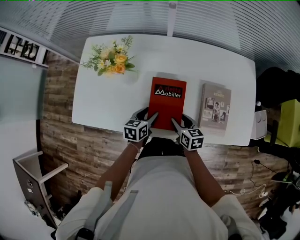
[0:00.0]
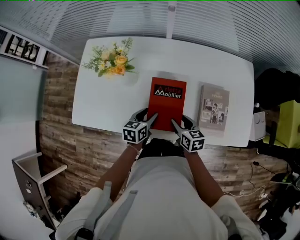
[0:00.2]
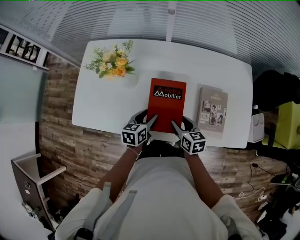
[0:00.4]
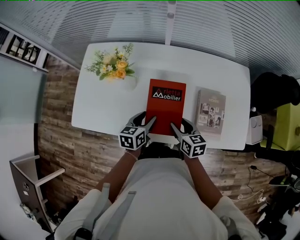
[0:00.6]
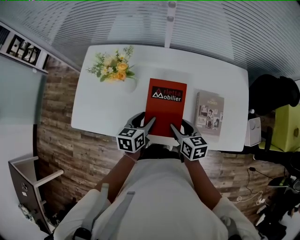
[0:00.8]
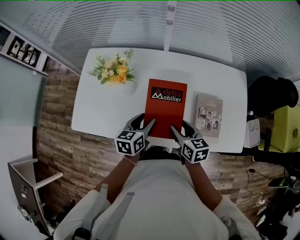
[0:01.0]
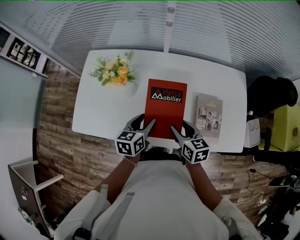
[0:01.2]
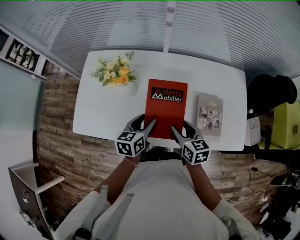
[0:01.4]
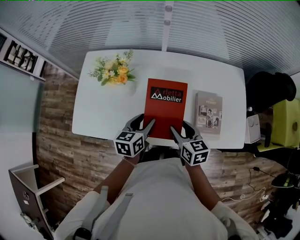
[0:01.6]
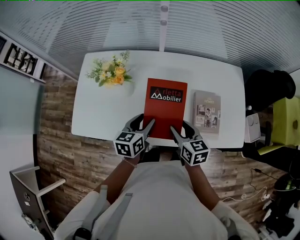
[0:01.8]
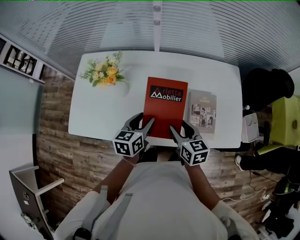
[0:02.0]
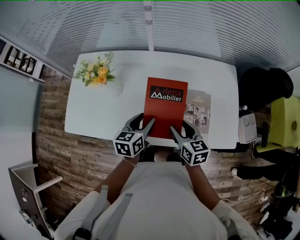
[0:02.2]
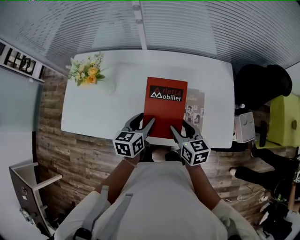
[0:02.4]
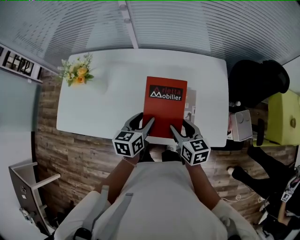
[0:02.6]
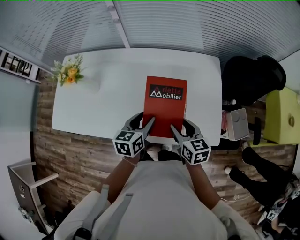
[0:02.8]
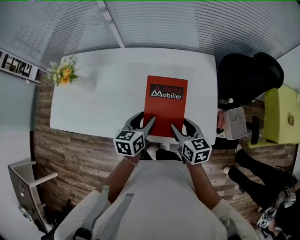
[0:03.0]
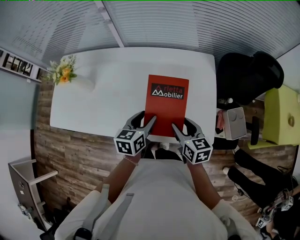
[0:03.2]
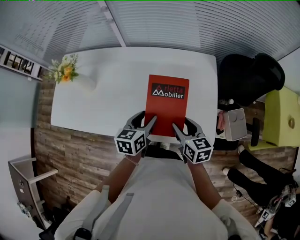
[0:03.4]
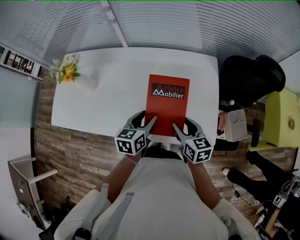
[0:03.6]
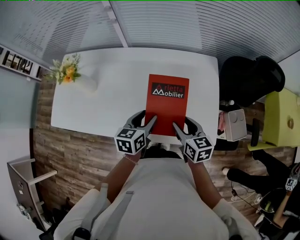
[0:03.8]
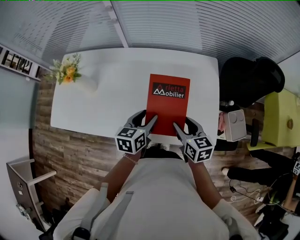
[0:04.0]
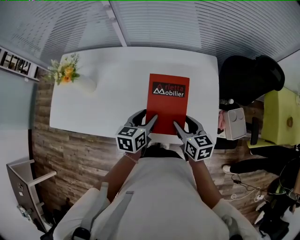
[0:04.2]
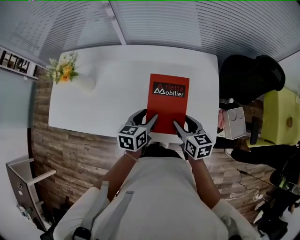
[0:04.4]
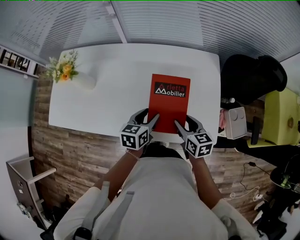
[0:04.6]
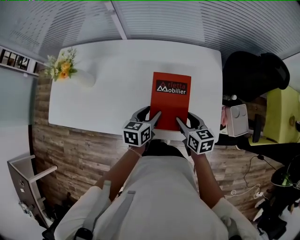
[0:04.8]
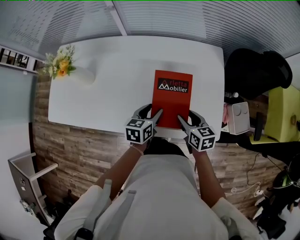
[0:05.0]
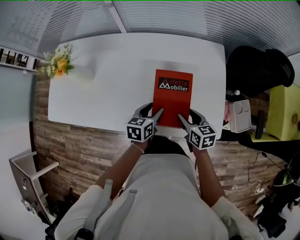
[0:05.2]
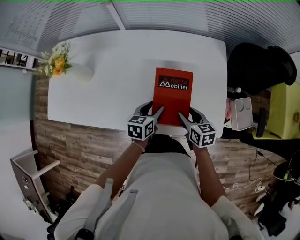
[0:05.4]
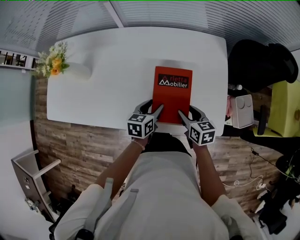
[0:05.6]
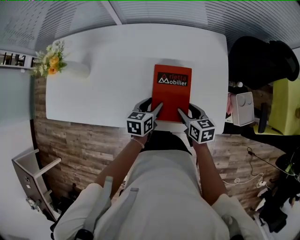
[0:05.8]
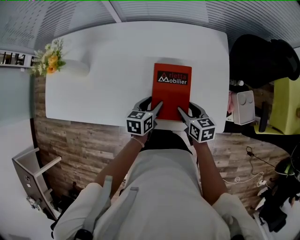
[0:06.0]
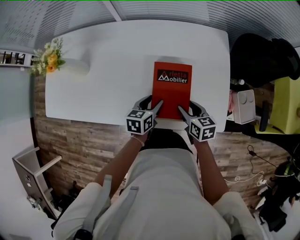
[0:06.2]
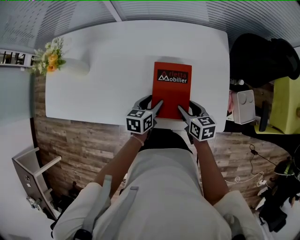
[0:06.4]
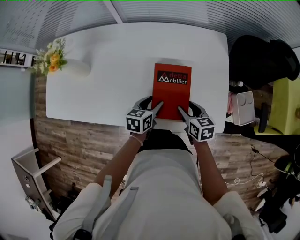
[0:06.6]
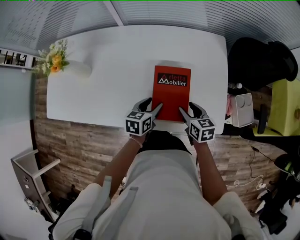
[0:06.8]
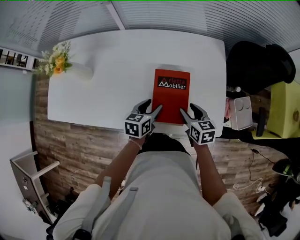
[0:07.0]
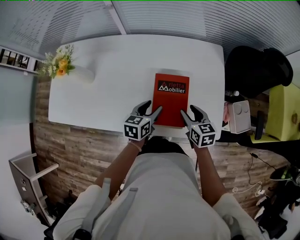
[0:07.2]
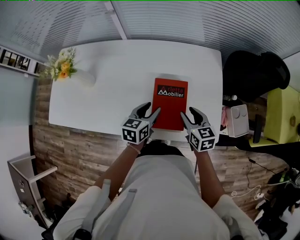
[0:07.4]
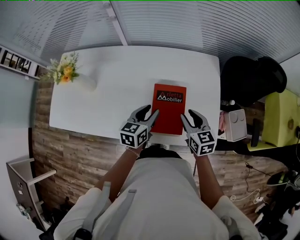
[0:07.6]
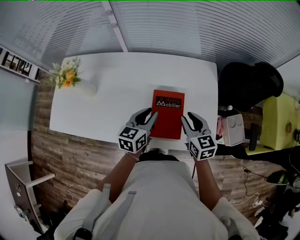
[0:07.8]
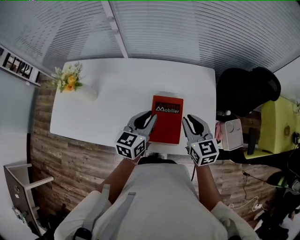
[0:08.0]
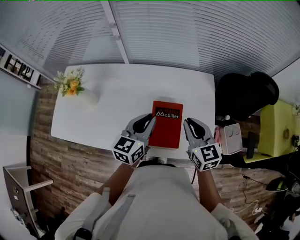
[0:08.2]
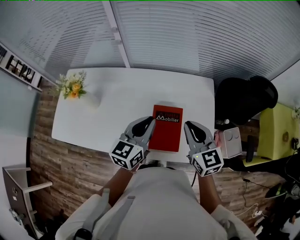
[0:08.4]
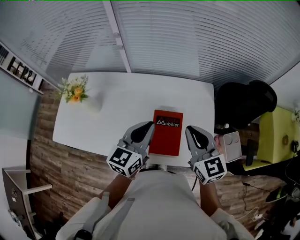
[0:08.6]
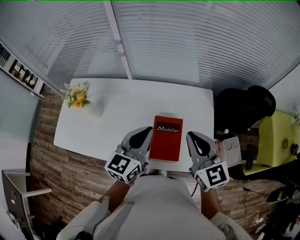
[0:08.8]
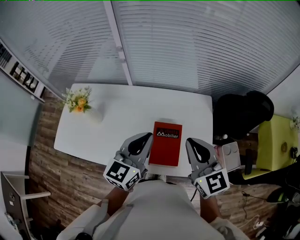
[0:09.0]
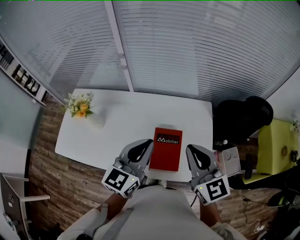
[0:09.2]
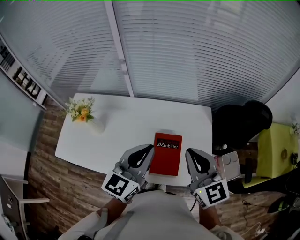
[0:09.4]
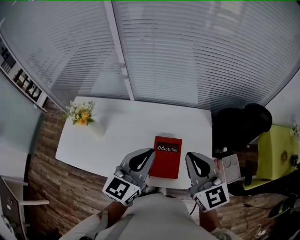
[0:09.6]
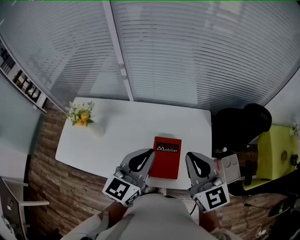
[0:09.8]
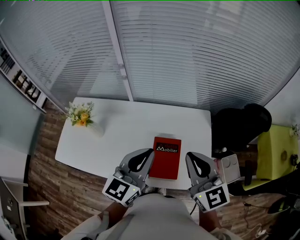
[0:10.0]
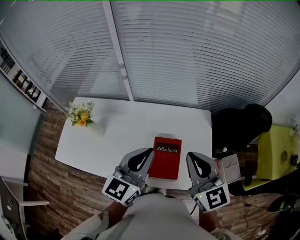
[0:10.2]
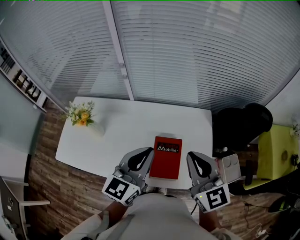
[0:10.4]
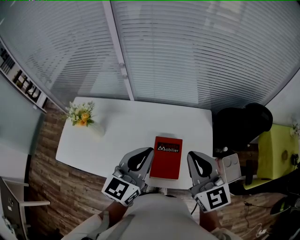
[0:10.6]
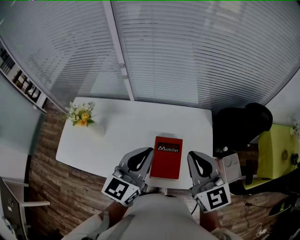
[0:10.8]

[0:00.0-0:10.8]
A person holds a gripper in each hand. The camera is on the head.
0.0 to 1.6 s: Both grippers travel together upward, roughly 15 cm.
1.6 to 3.0 s: Both grippers travel together to the right, about 30 cm.
3.0 to 4.6 s: There are only small adjustments of the grippers.
4.6 to 6.2 s: The grippers both shift downward by approximately 10 cm.
6.2 to 7.8 s: The grippers both shift upward by roughly 15 cm. The right gripper rotates approximately 20 degrees, and closes, while the left gripper rotates approximately 20 degrees, and closes up.
7.8 to 9.2 s: Both grippers travel together upward, some 25 cm. The left gripper swivels approximately 20 degrees, and closes its fingers. The right gripper swivels roughly 20 degrees, and closes up.
9.2 to 10.8 s: The grippers make only small movements.

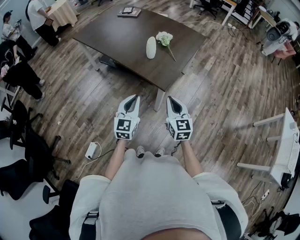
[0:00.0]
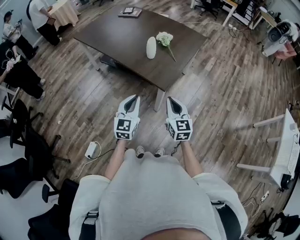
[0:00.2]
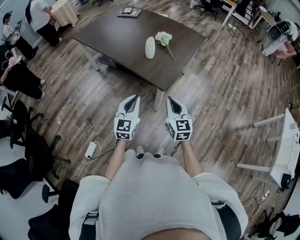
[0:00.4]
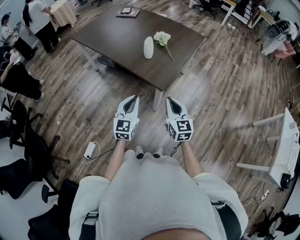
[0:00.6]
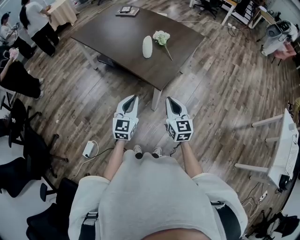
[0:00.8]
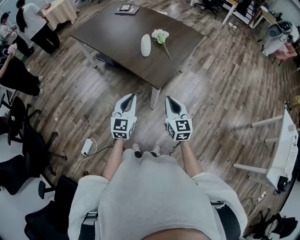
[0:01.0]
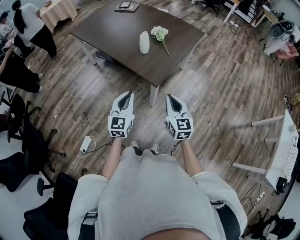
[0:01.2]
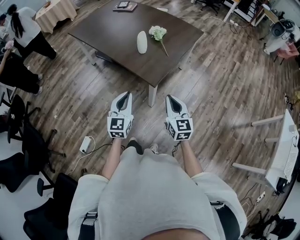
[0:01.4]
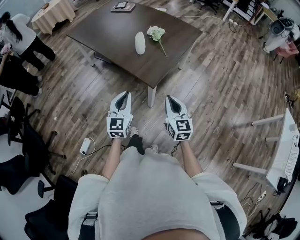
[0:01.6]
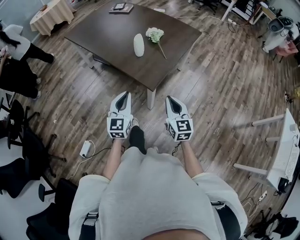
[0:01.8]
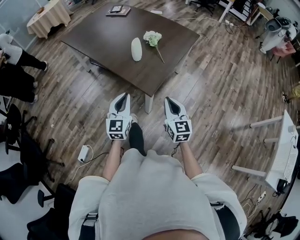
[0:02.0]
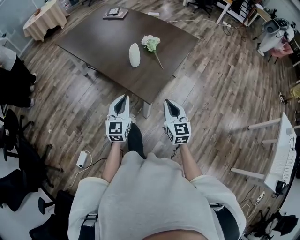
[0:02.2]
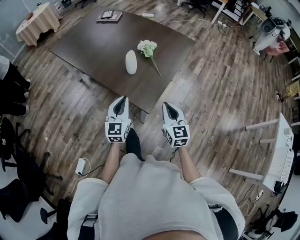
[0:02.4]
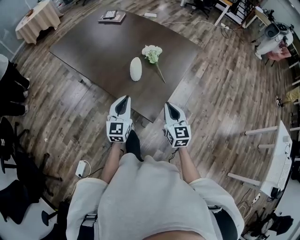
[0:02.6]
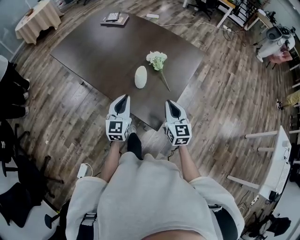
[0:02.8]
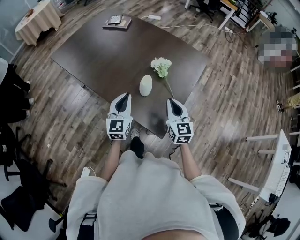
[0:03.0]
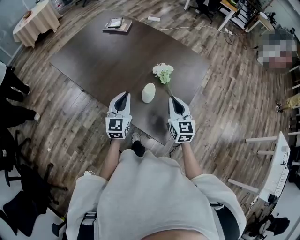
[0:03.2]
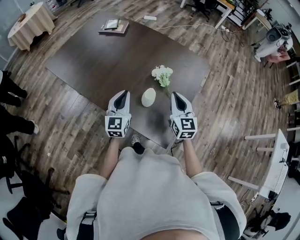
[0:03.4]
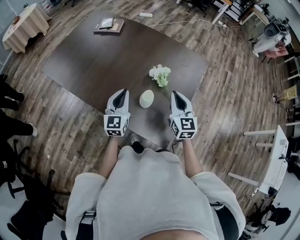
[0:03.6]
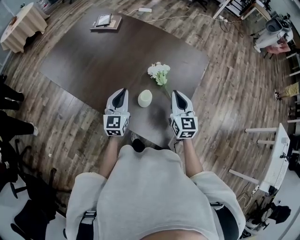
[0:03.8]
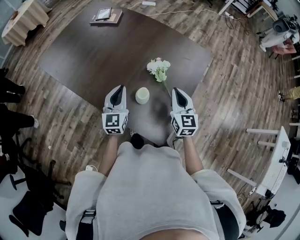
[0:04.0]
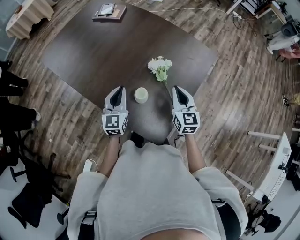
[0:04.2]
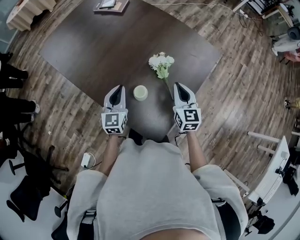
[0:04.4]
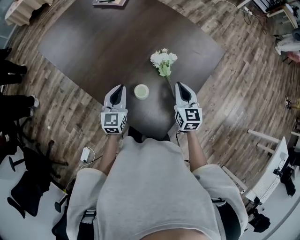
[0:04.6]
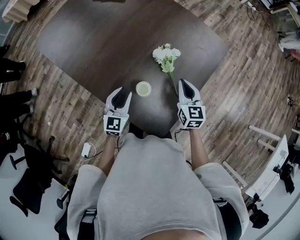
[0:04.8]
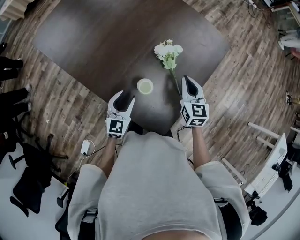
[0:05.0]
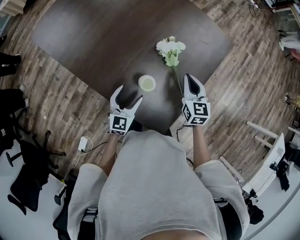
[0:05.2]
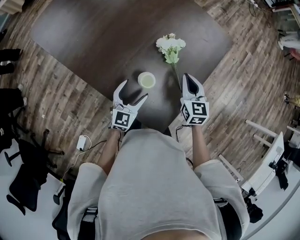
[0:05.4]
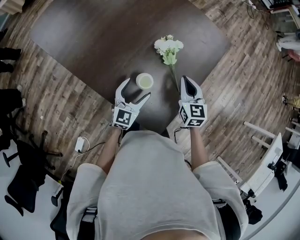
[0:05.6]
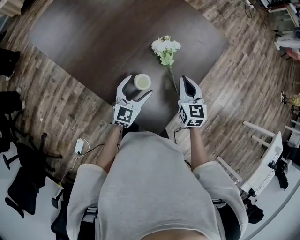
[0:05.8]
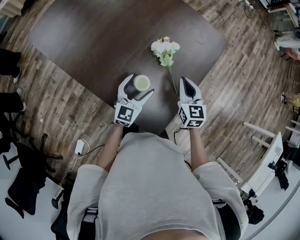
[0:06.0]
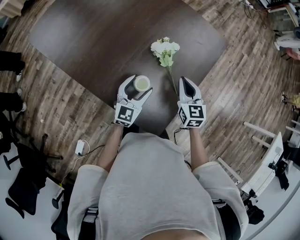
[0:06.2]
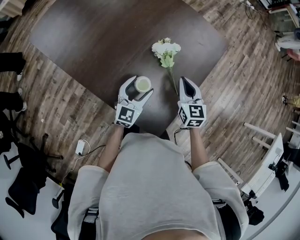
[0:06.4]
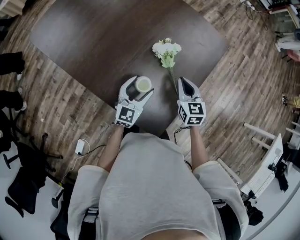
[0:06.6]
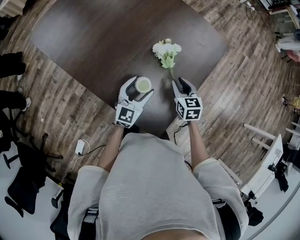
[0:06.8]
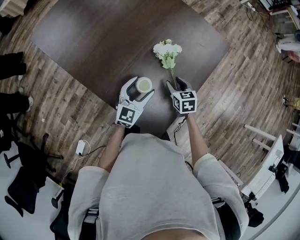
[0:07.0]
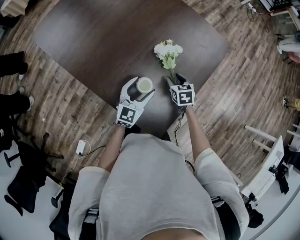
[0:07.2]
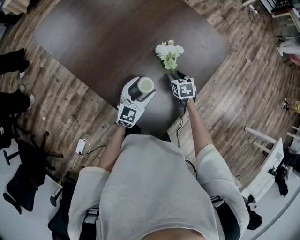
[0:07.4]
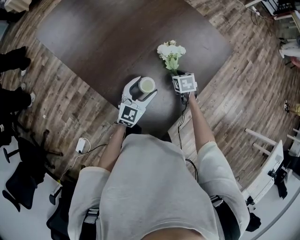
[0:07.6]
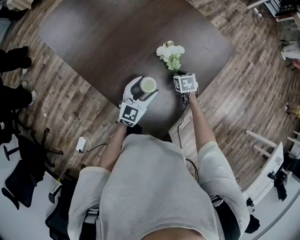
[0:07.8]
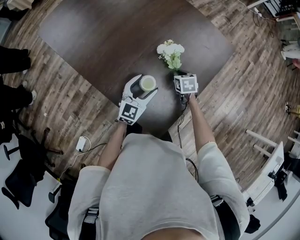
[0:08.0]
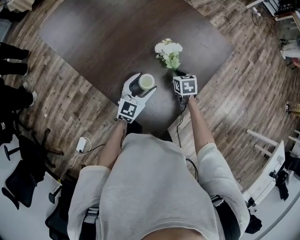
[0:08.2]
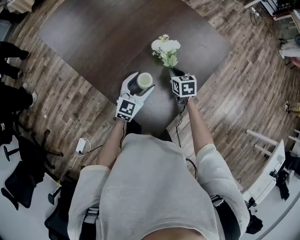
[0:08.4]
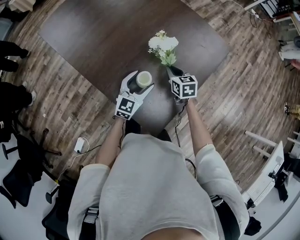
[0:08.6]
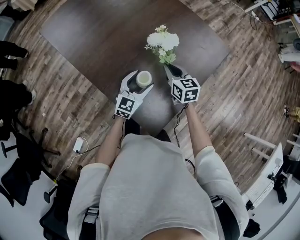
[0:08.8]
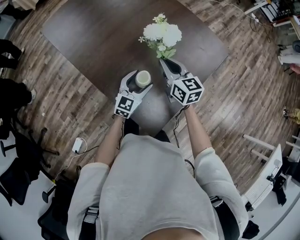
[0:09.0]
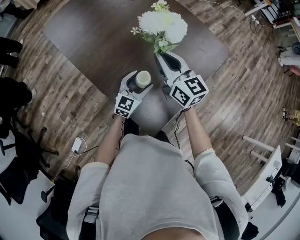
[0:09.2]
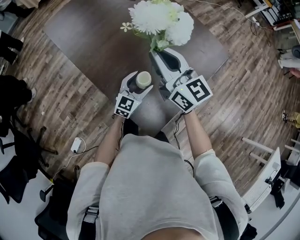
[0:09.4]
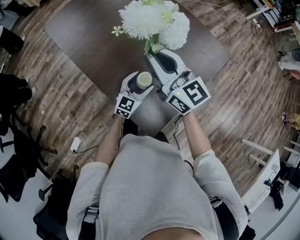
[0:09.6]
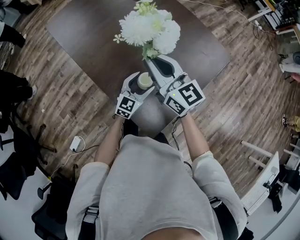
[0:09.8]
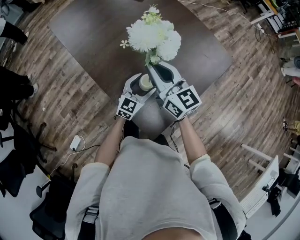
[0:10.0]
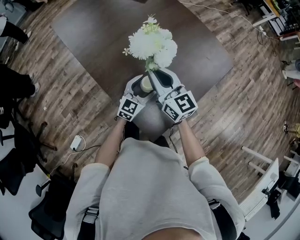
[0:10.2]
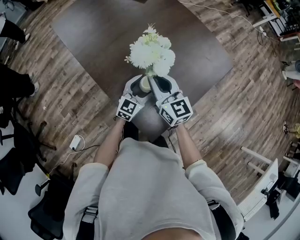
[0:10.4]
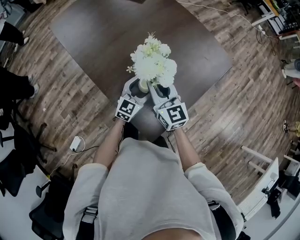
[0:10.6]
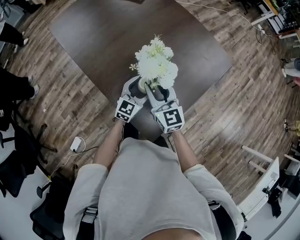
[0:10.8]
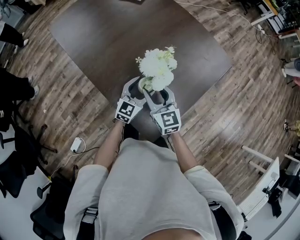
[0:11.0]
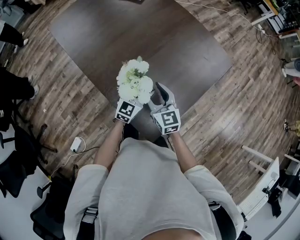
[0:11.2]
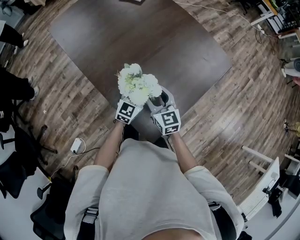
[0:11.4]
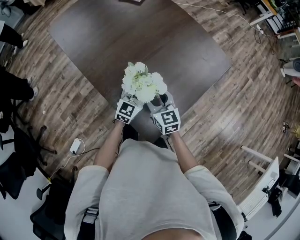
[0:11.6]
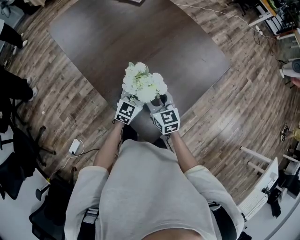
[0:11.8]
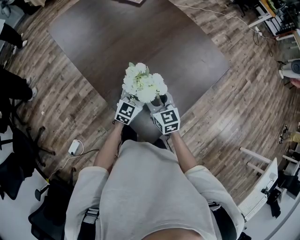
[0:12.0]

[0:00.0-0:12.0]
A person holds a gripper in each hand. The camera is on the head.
0.0 to 1.6 s: The left gripper is displaced to the right by some 5 cm. Meanwhile the right gripper is displaced to the right by about 10 cm.
1.6 to 3.0 s: Both grippers move forward, approximately 35 cm.
3.0 to 4.4 s: The left gripper goes approximately 15 cm forward and downward; the right gripper shifts roughly 15 cm forward.
4.4 to 6.0 s: The left gripper moves to the right and downward, some 10 cm, changes its angle by roughly 20 degrees, and opens its fingers. Meanwhile the right gripper shifts roughly 5 cm downward.
6.0 to 7.6 s: The right gripper shifts about 15 cm downward, tilts its fingers roughly 40 degrees downward, and opens.
7.6 to 9.0 s: The right gripper heads upward, covering some 20 cm, tips its fingers upward by some 50 degrees, and closes its fingers.
9.0 to 10.4 s: The right gripper is displaced to the left by roughly 5 cm, and travels upward and back again, roughly 15 cm each way.
10.4 to 12.0 s: The right gripper is displaced downward by roughly 10 cm, and opens up.

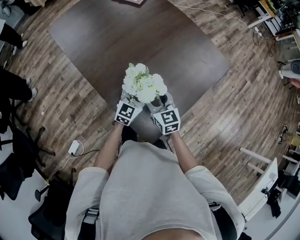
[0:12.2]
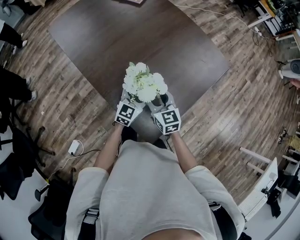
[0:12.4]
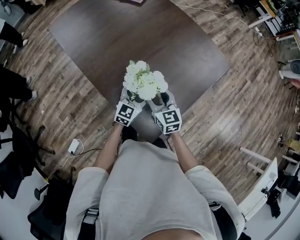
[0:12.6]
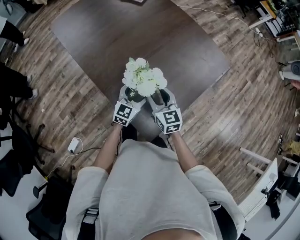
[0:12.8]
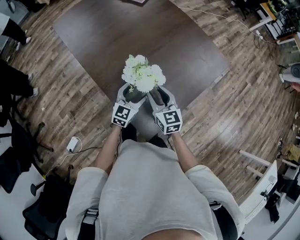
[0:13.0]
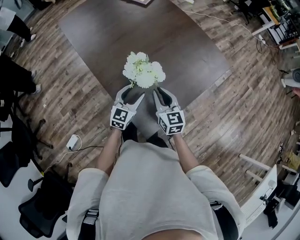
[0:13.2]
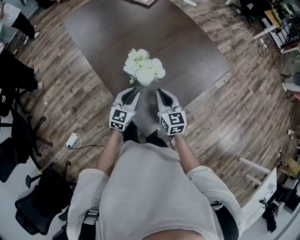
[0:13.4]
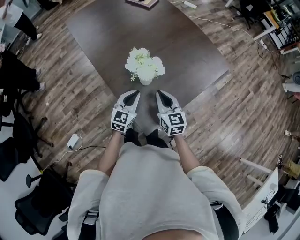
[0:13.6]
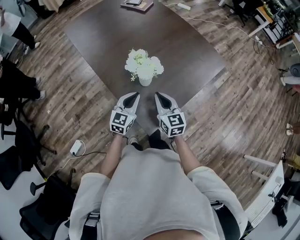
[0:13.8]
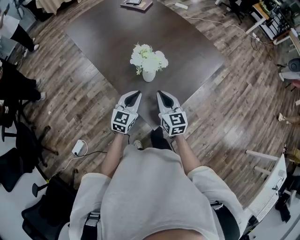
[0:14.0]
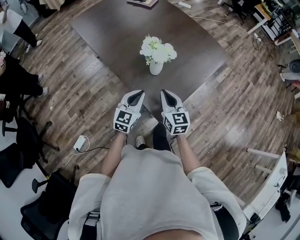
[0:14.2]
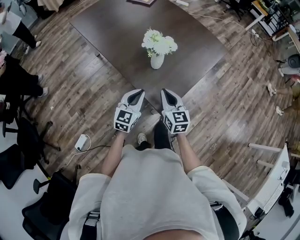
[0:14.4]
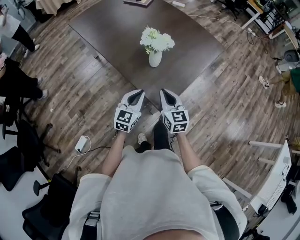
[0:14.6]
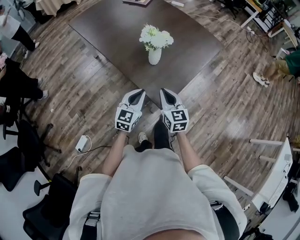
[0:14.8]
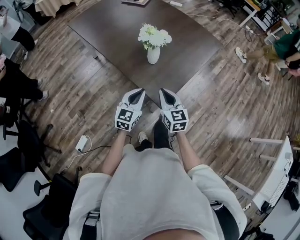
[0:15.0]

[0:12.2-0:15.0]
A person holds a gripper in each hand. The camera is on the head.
12.2 to 13.6 s: Both grippers move backward, about 10 cm. The right gripper closes up, while the left gripper closes its fingers.
13.6 to 15.0 s: Both grippers move backward, about 15 cm.
